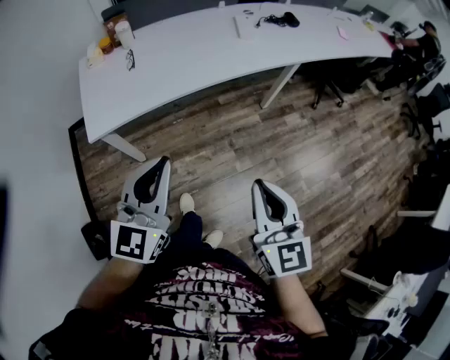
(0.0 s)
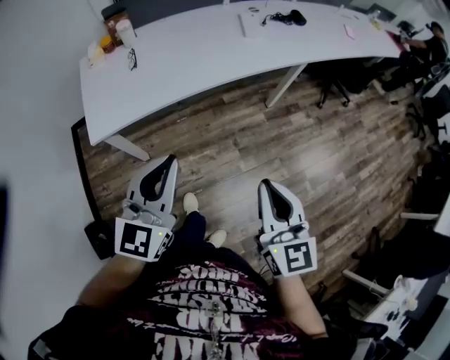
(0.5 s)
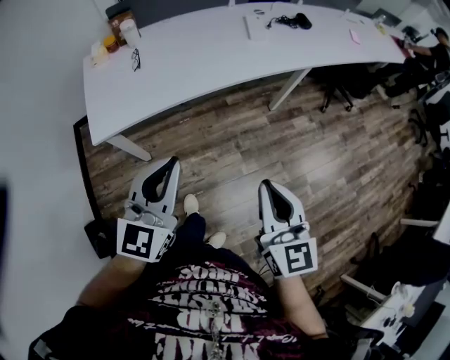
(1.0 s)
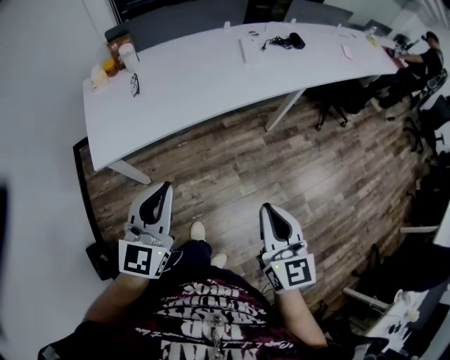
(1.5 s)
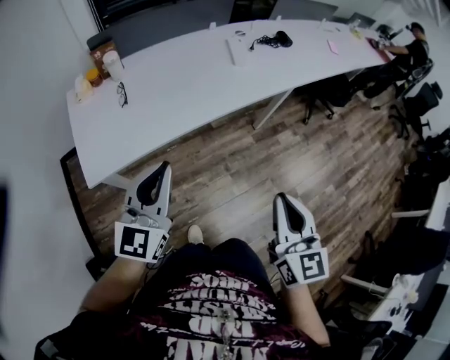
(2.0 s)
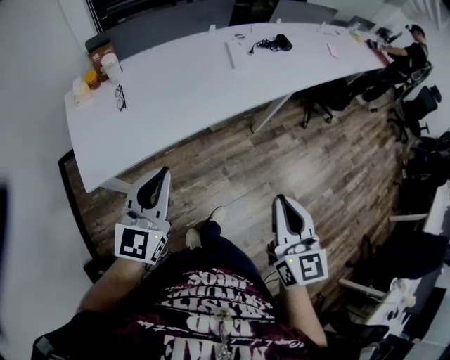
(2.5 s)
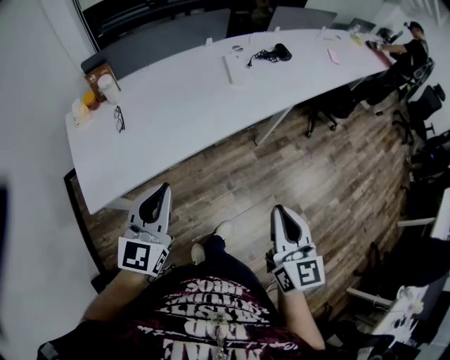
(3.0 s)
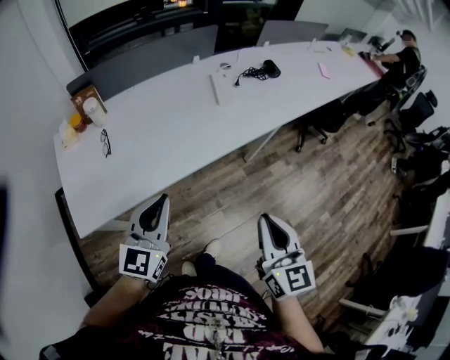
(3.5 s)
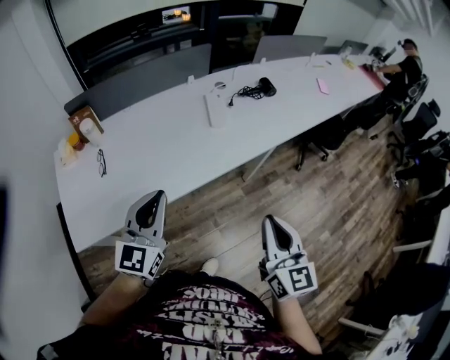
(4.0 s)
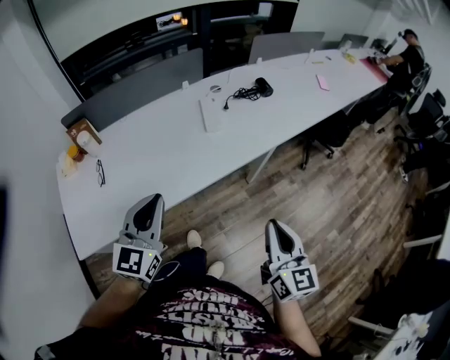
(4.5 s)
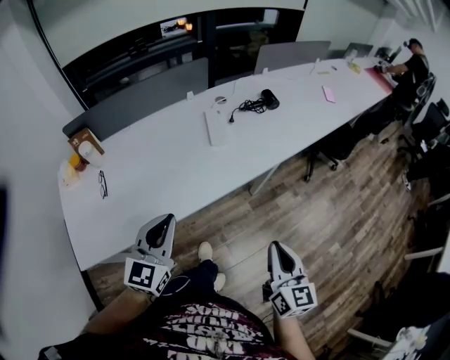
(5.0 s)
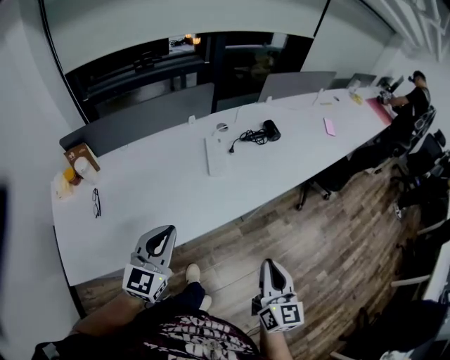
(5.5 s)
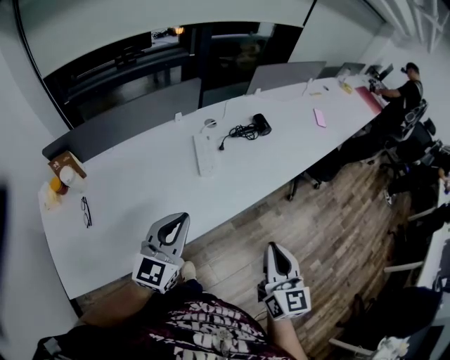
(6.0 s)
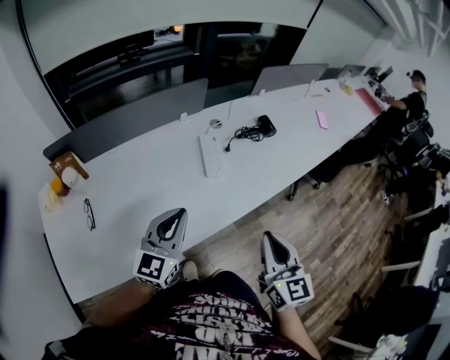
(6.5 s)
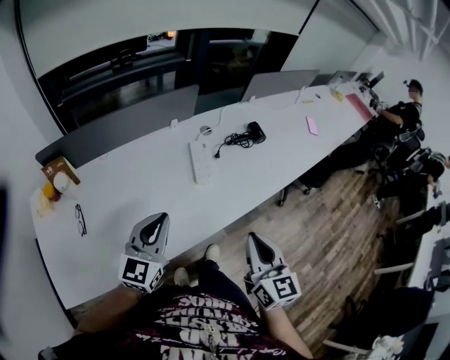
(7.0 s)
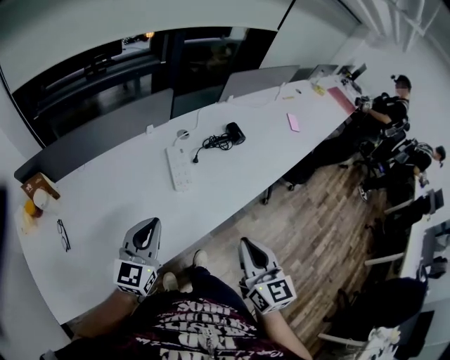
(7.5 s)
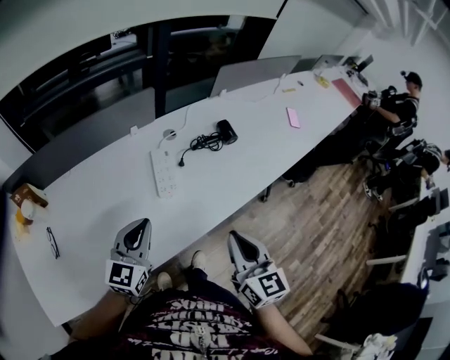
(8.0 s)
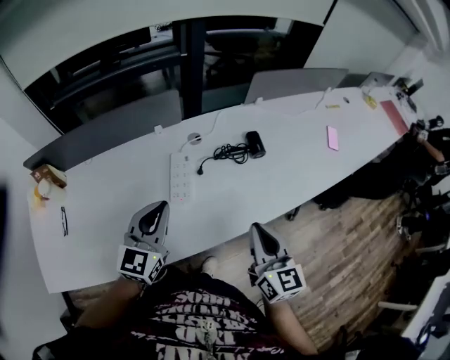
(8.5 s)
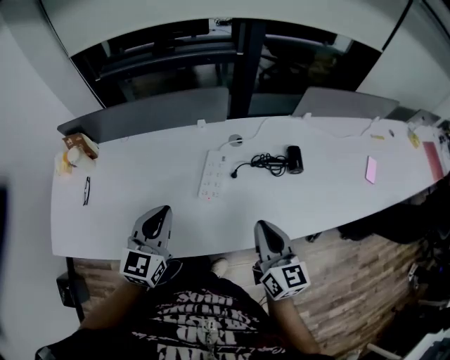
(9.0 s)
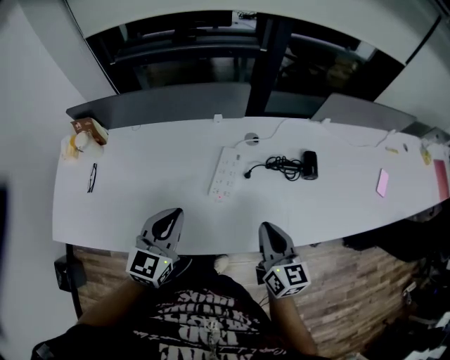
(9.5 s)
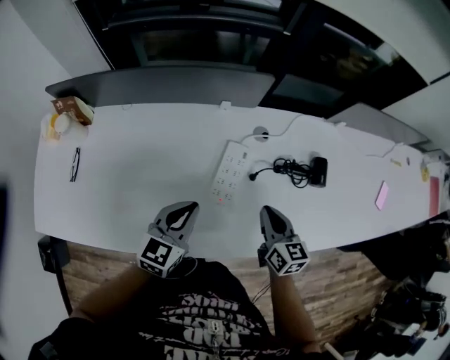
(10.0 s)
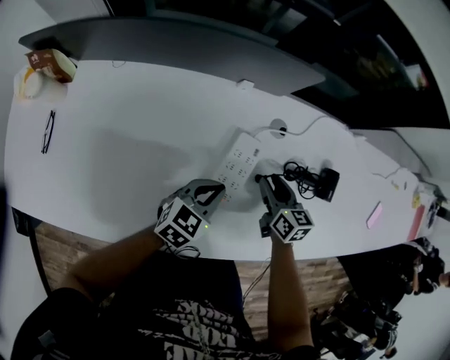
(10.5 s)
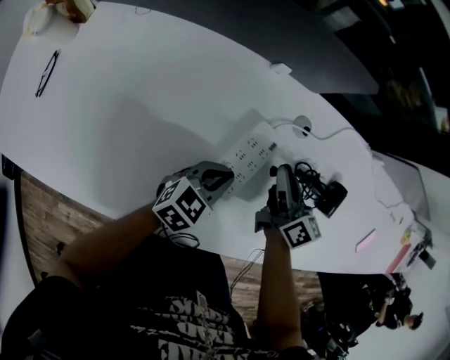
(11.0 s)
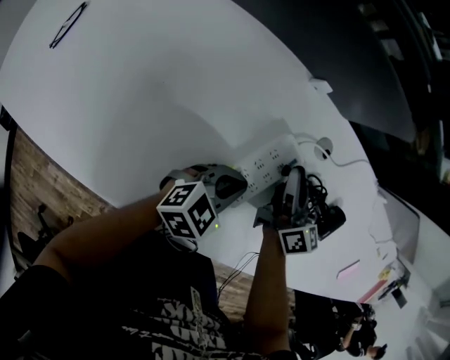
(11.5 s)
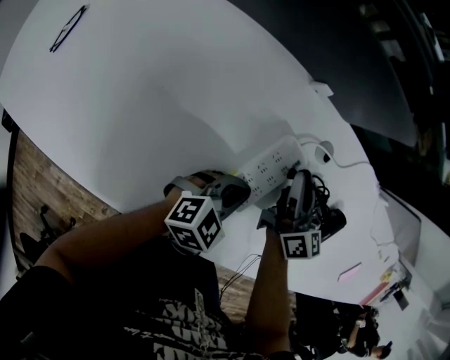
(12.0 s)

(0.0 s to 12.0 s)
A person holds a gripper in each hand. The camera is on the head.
0.0 s - 2.0 s: Both grippers move forward, some 15 cm.
2.0 s - 4.0 s: Both grippers travel together forward and to the right, roughly 20 cm.
4.0 s - 6.0 s: Both grippers move forward, approximately 15 cm.
6.0 s - 8.0 s: The left gripper goes some 15 cm forward and downward, while the right gripper heads forward, covering approximately 15 cm.
8.0 s - 10.0 s: The left gripper changes place by some 15 cm, and swivels approximately 20 degrees, while the right gripper ends up roughly 30 cm from where it was, and swivels about 30 degrees.
10.0 s - 12.0 s: The right gripper shifts roughly 20 cm forward and downward, turns by approximately 20 degrees, and opens, then closes again. Meanwhile the left gripper shifts some 20 cm downward, to the right and forward.

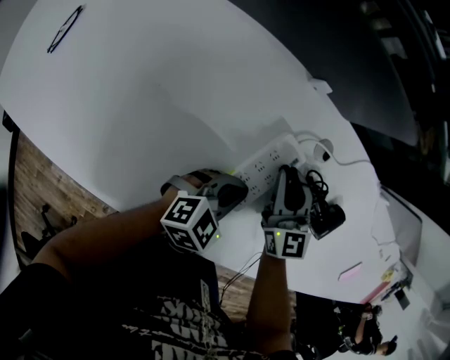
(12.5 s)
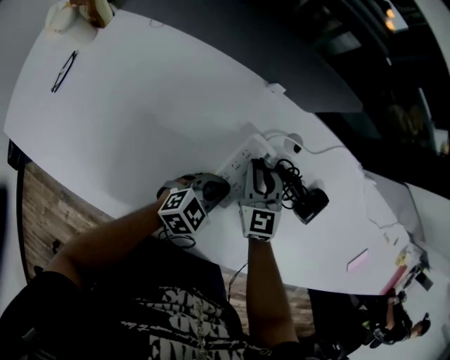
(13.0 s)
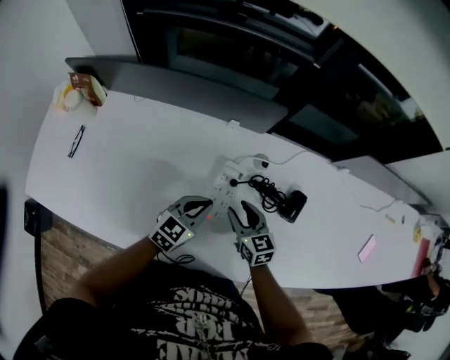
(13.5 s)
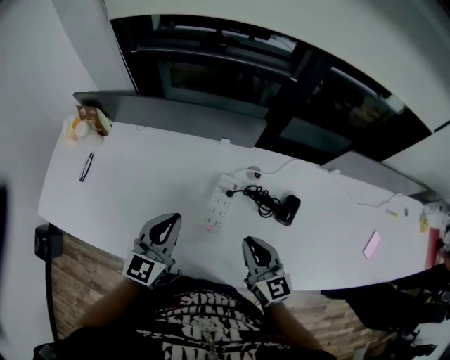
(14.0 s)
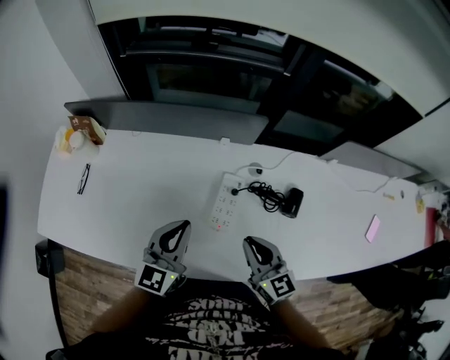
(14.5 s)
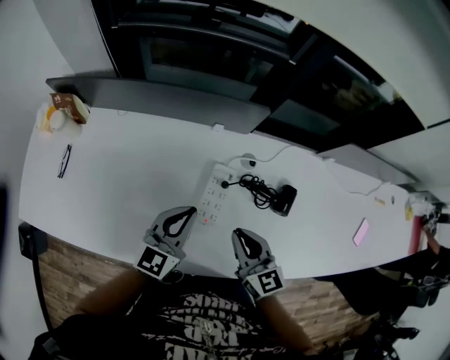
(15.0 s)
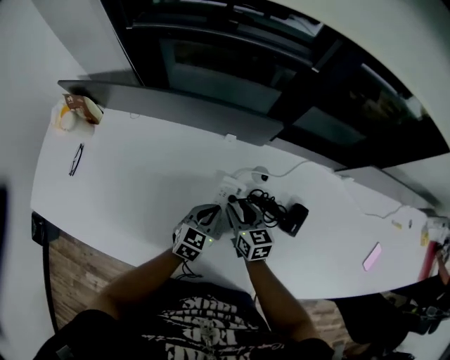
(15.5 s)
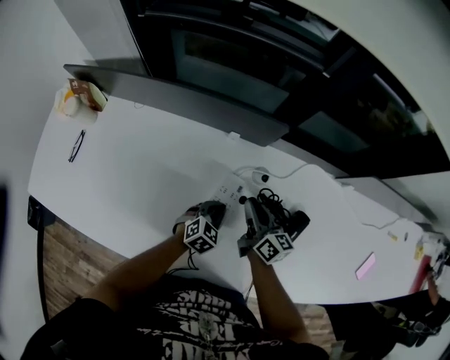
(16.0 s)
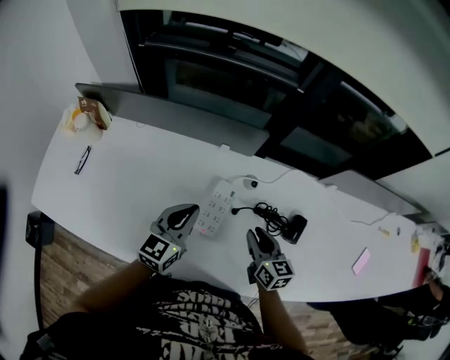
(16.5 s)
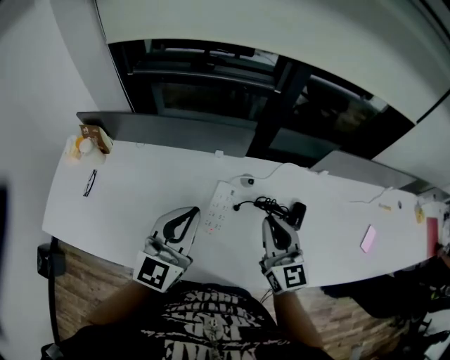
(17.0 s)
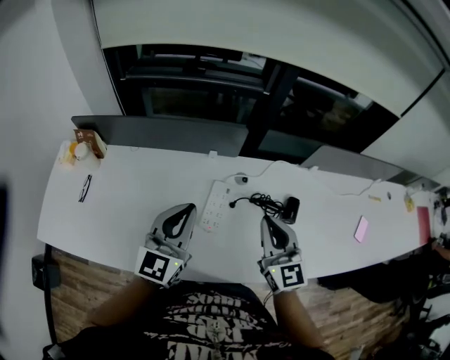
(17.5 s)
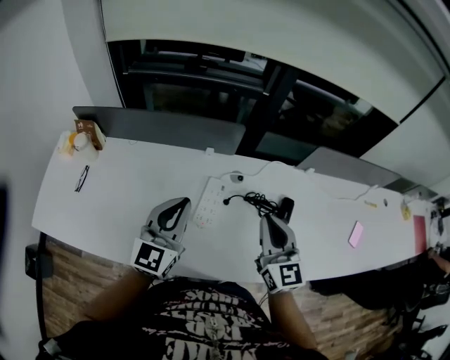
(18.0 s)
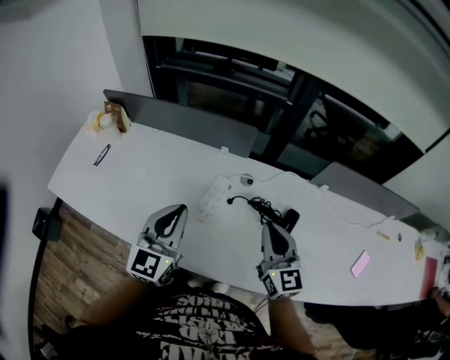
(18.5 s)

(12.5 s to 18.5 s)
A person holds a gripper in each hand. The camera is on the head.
12.5 s - 14.5 s: The right gripper is displaced backward and upward by some 25 cm, and opens, then closes once more; the left gripper moves upward and to the left, roughly 30 cm, and swivels some 40 degrees.
14.5 s - 16.5 s: The right gripper is displaced to the right, downward and forward by approximately 15 cm, while the left gripper shifts about 10 cm forward and to the right, and moves approximately 25 cm downward and comes back.
16.5 s - 18.5 s: The right gripper goes some 20 cm upward, to the right and backward, swivels roughly 30 degrees, and closes, while the left gripper shifts approximately 15 cm upward and backward, and rotates about 20 degrees.

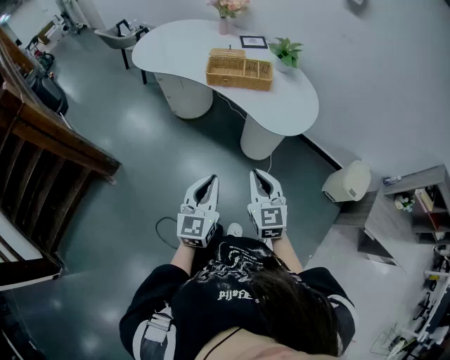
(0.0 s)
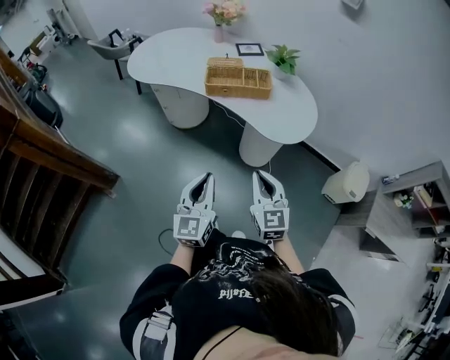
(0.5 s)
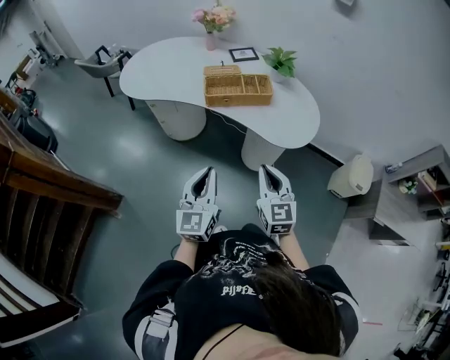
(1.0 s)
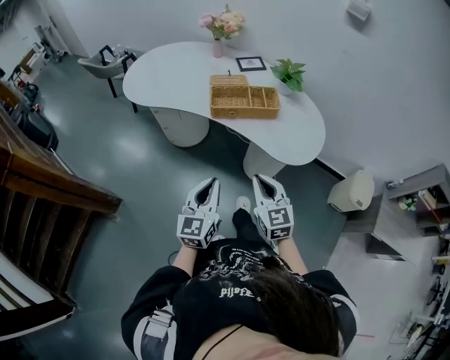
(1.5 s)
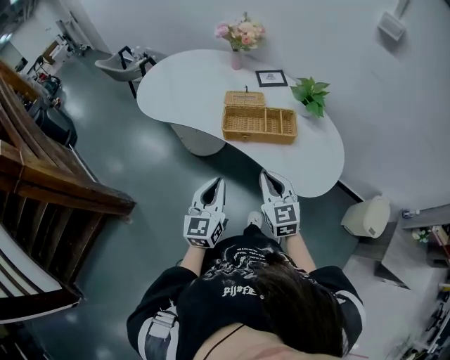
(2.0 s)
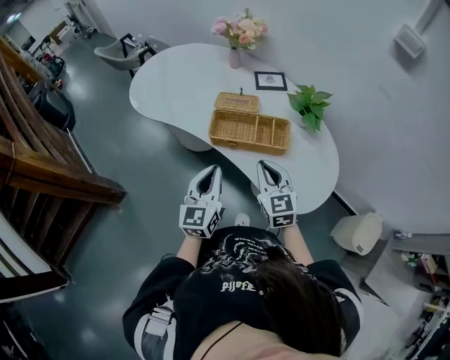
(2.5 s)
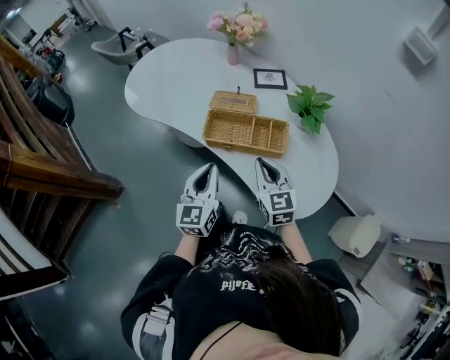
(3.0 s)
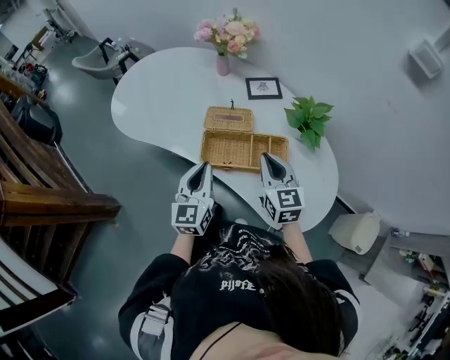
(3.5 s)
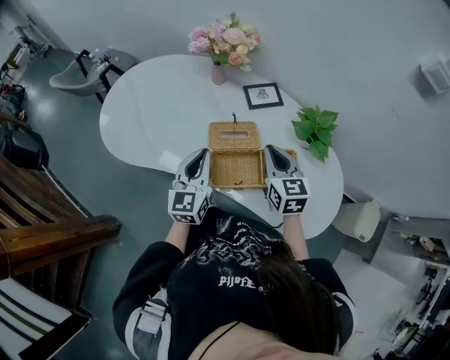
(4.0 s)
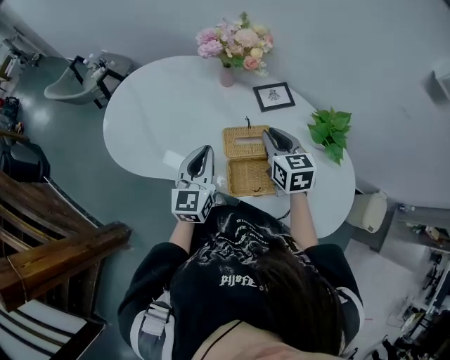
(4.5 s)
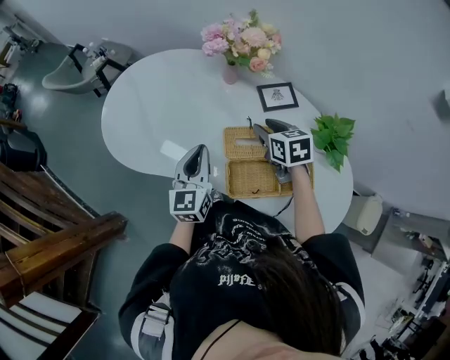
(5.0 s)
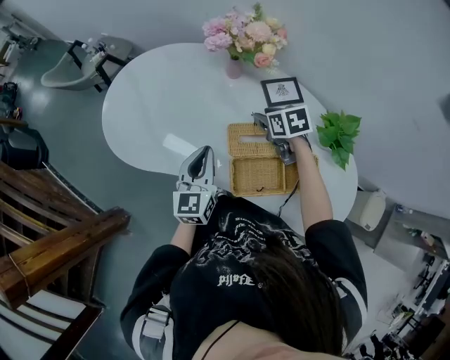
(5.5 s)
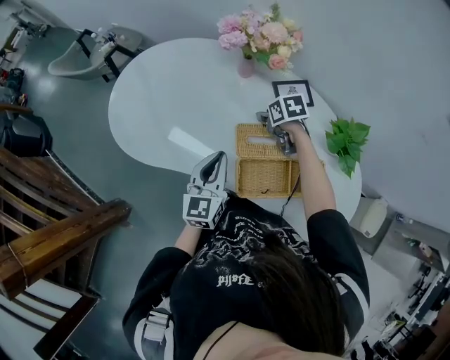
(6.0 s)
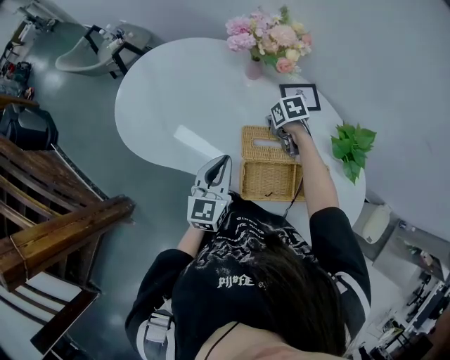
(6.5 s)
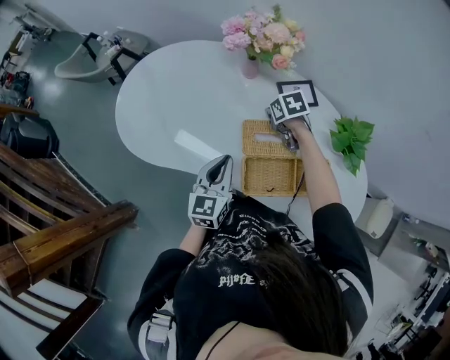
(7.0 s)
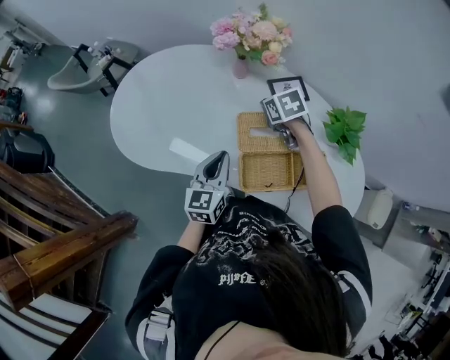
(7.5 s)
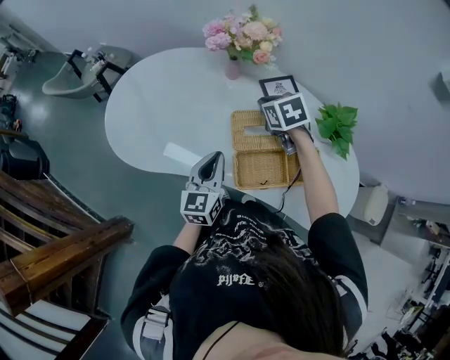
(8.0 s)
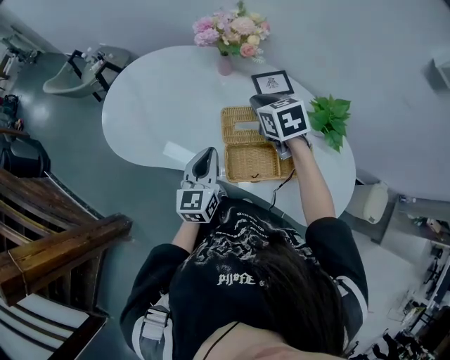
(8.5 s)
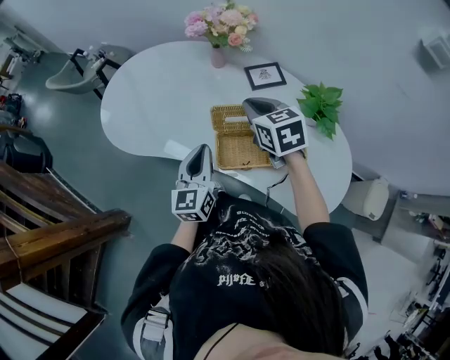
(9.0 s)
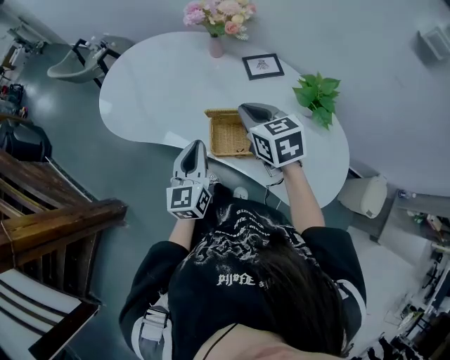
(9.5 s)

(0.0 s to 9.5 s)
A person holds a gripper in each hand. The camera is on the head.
0.0 s - 2.0 s: Both grippers move forward, some 30 cm.
2.0 s - 4.0 s: The grippers both shift forward by approximately 35 cm.
4.0 s - 5.5 s: The left gripper shifts about 10 cm forward and to the left. Meanwhile the right gripper is displaced forward and downward by roughly 20 cm, changes its angle by about 40 degrees, and opens.
5.5 s - 7.5 s: The right gripper moves about 10 cm downward and comes back, and closes up.
7.5 s - 9.5 s: The left gripper is displaced backward by some 10 cm; the right gripper moves backward and upward, some 25 cm, and turns by roughly 30 degrees.
